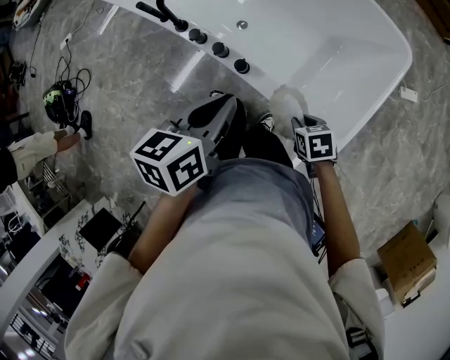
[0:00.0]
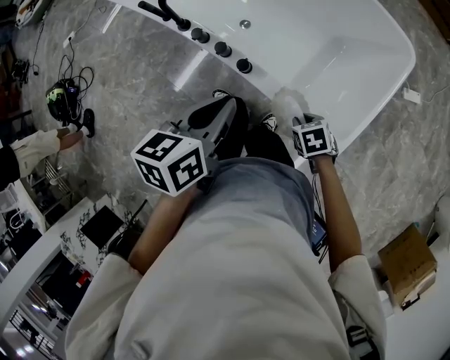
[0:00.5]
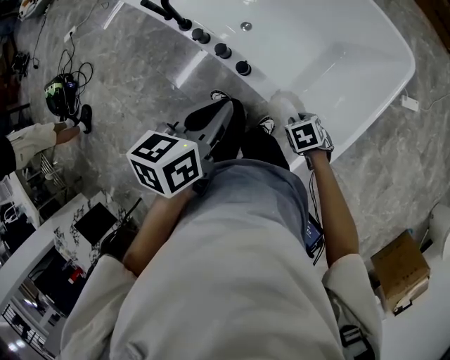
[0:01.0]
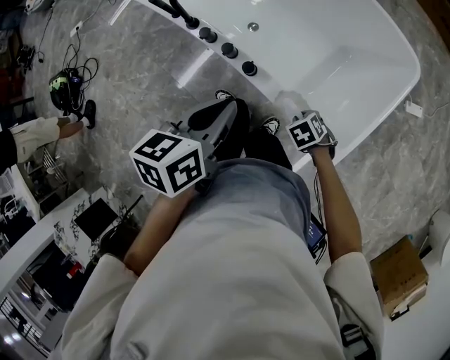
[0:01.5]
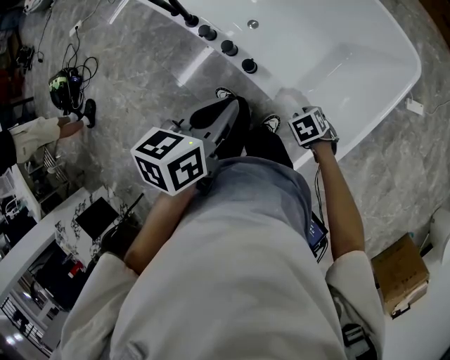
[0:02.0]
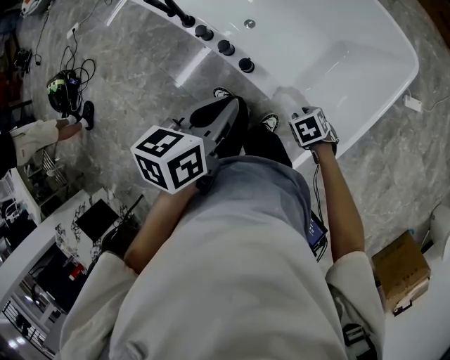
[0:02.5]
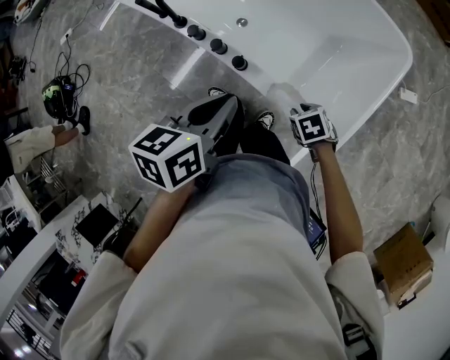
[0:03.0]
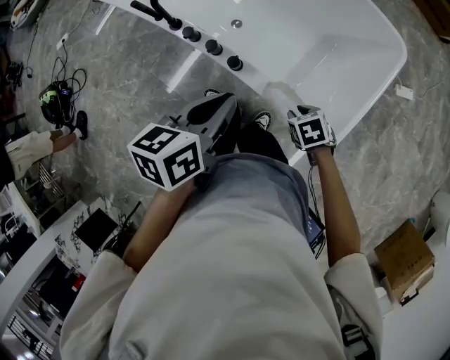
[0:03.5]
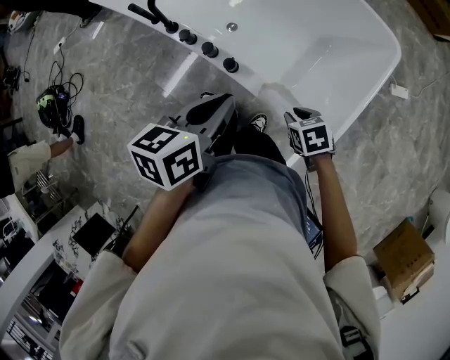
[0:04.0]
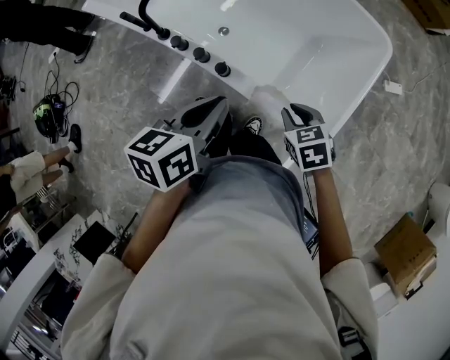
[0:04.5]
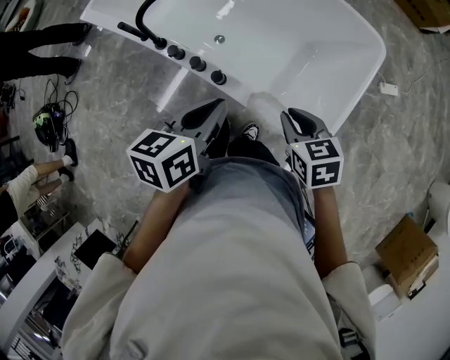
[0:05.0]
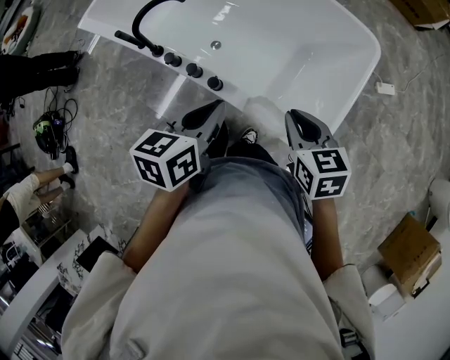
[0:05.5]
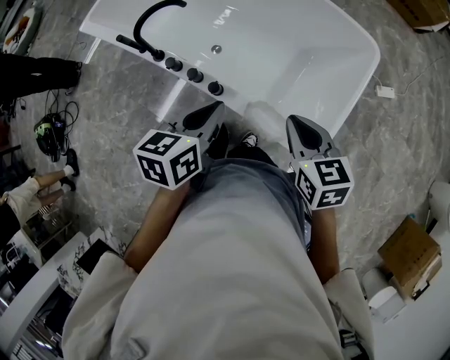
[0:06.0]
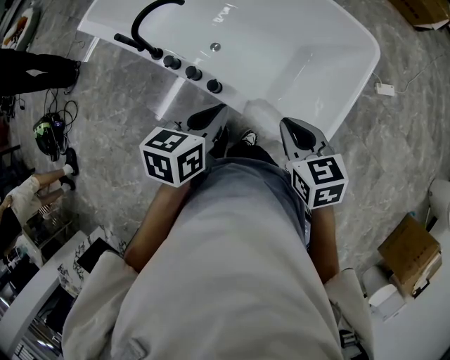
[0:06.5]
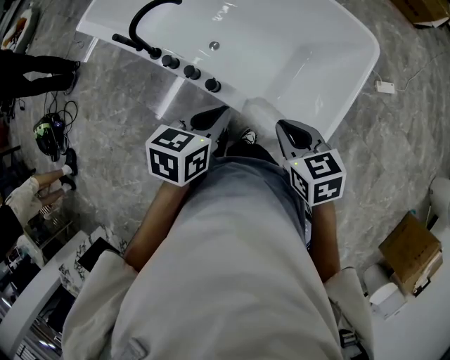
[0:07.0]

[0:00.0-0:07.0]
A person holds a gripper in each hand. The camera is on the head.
0:00.0 to 0:02.0: The right gripper heads downward, covering approximately 5 cm, and changes its angle by some 20 degrees.
0:02.0 to 0:03.5: There are only small adjustments of the grippers.
0:03.5 to 0:05.0: The right gripper is displaced upward by some 15 cm, and changes its angle by roughly 30 degrees.
0:05.0 to 0:07.0: The grippers make only small movements.

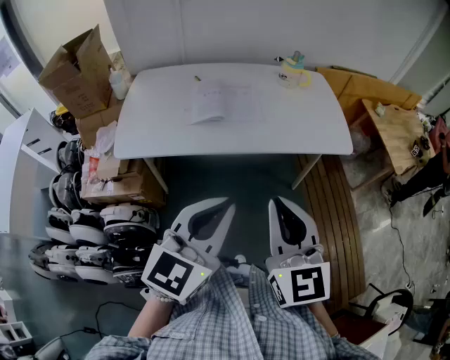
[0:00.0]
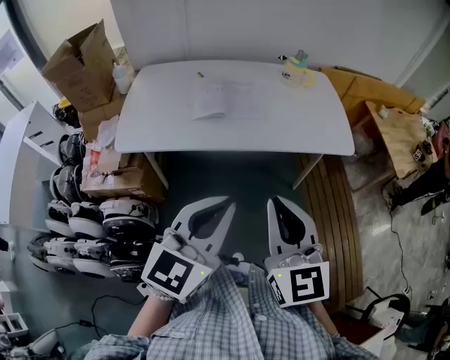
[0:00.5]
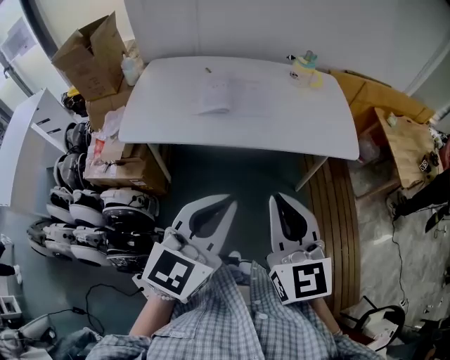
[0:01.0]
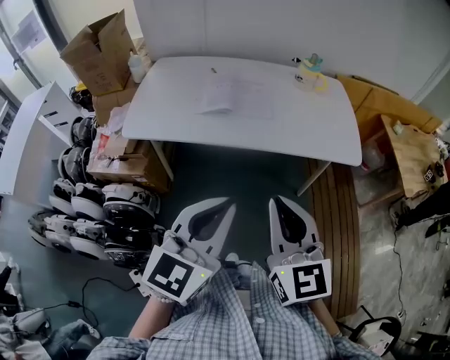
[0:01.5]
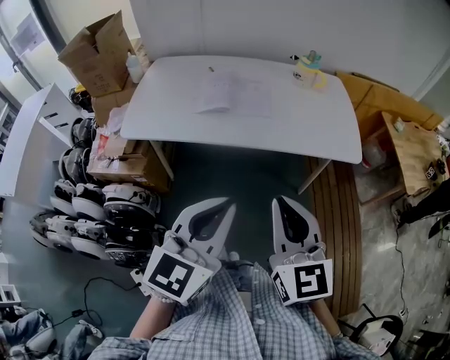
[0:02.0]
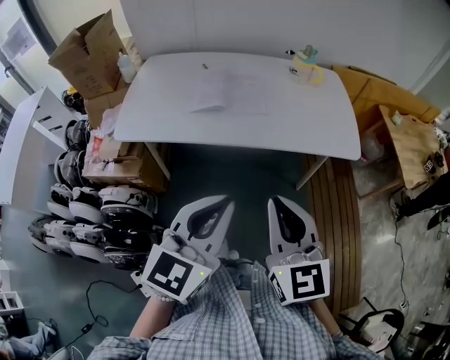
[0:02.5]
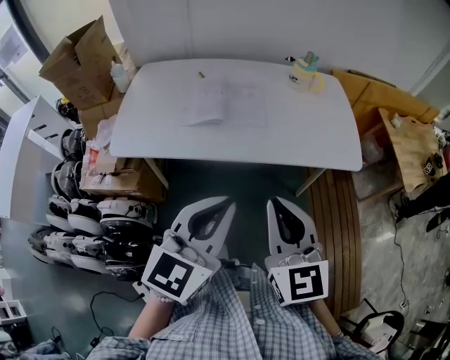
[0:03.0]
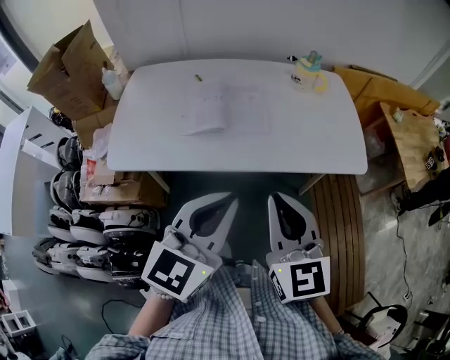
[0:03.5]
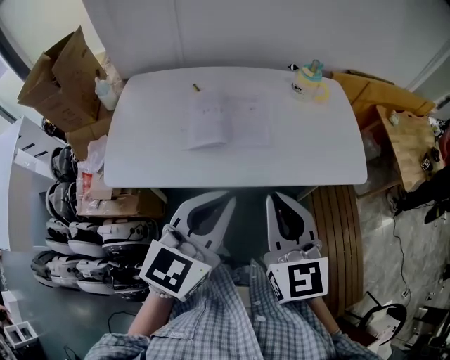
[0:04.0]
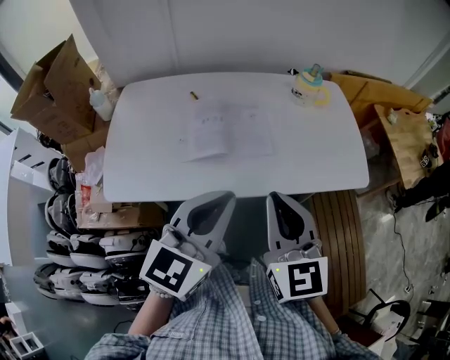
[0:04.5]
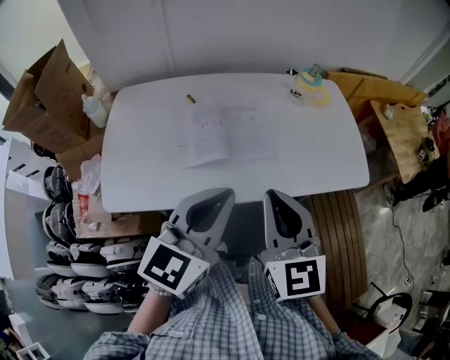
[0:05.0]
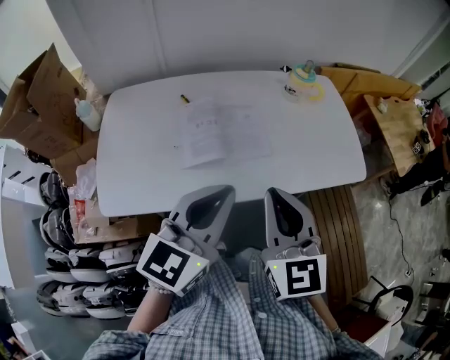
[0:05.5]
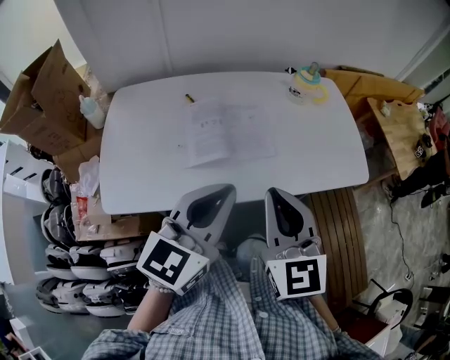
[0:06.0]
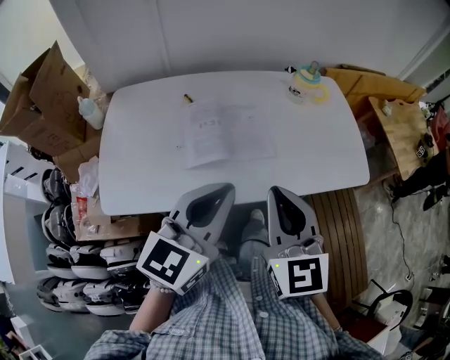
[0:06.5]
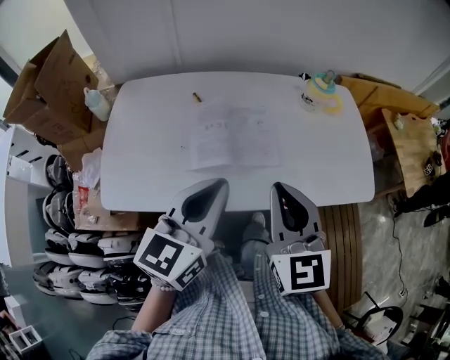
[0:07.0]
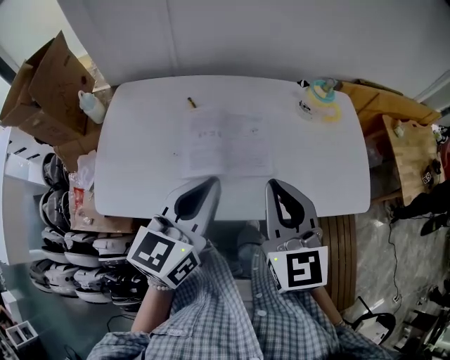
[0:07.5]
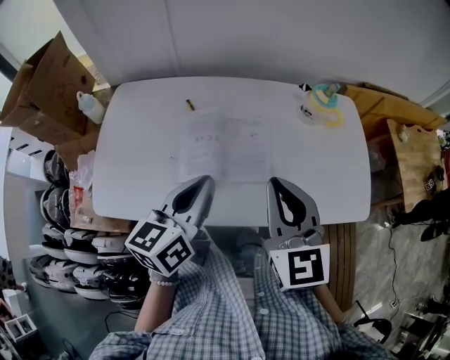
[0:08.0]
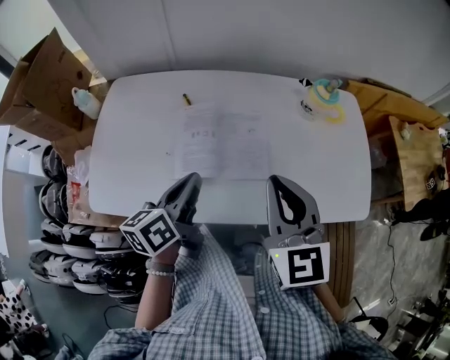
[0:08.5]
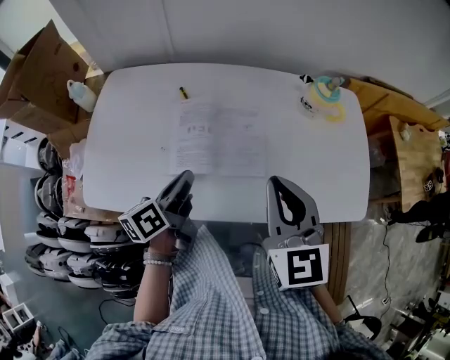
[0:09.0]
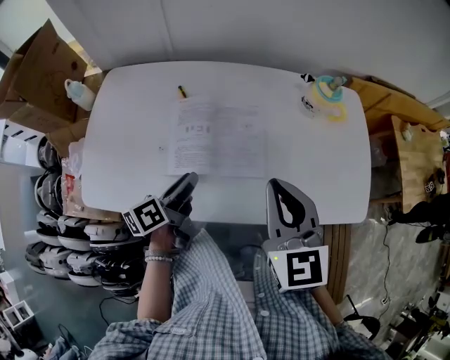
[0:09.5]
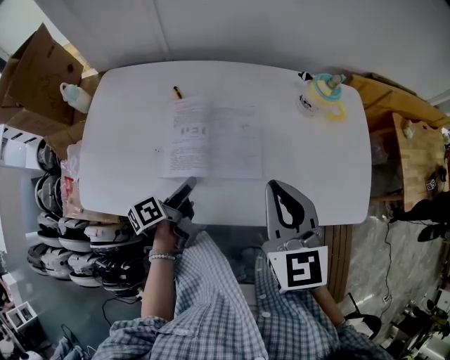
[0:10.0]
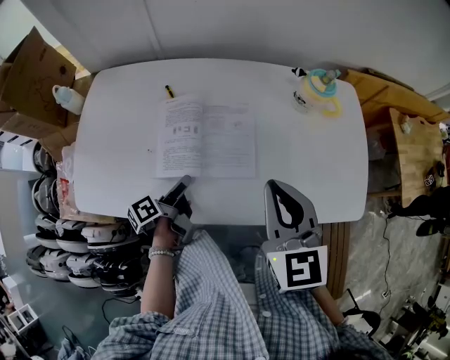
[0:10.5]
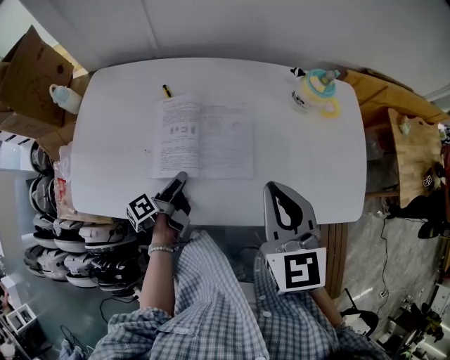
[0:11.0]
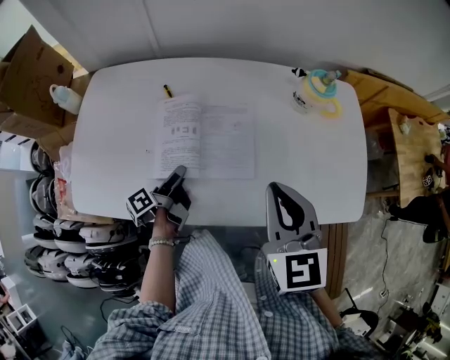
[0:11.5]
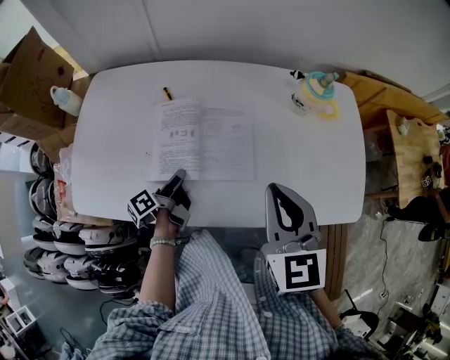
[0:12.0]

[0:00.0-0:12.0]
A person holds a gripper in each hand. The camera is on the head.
0:00.0 to 0:02.0: The grippers both shift to the right by some 5 cm.
0:02.0 to 0:04.0: The right gripper goes approximately 20 cm forward and to the left. Meanwhile the left gripper is displaced forward by some 20 cm.
0:04.0 to 0:06.0: The left gripper shifts approximately 10 cm forward and to the left, while the right gripper is displaced to the left and forward by some 5 cm.
0:06.0 to 0:08.0: The left gripper shifts about 15 cm forward and downward, and rotates about 30 degrees. Meanwhile the right gripper is displaced forward by roughly 15 cm.
0:08.0 to 0:10.0: The left gripper travels downward by about 20 cm, rotates around the line of its fingers by approximately 50 degrees, counterclockwise from behind, and opens. The right gripper shifts by about 5 cm.
0:10.0 to 0:12.0: The left gripper goes roughly 5 cm downward.

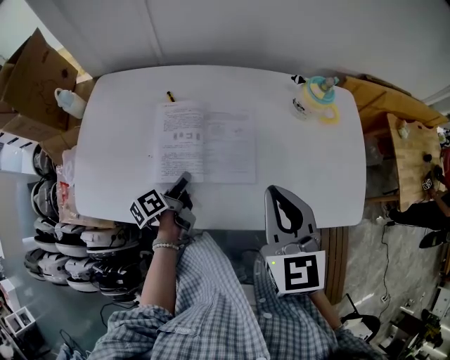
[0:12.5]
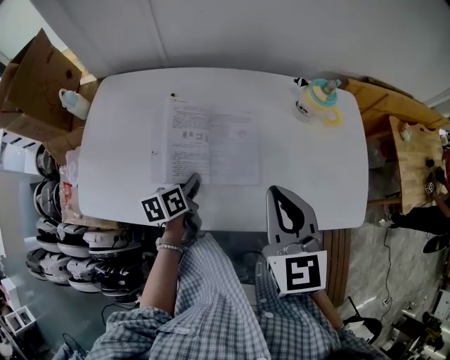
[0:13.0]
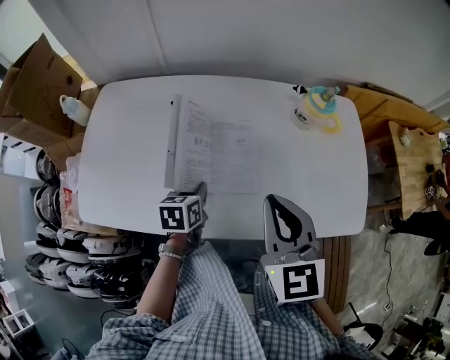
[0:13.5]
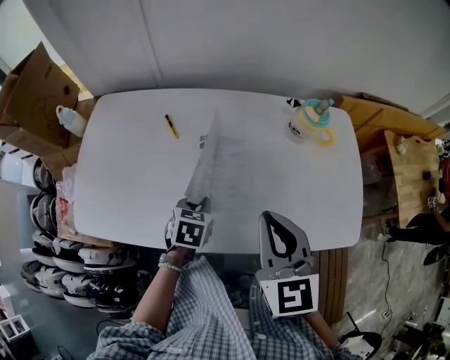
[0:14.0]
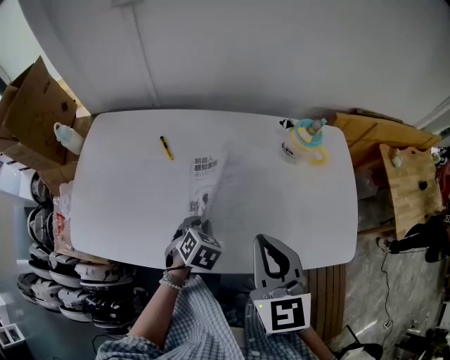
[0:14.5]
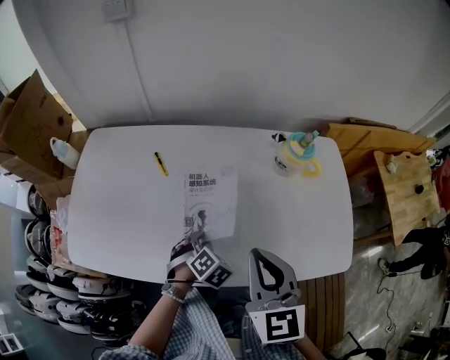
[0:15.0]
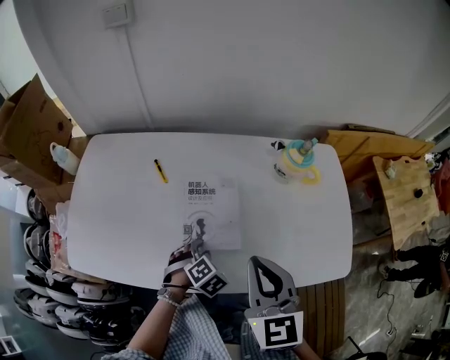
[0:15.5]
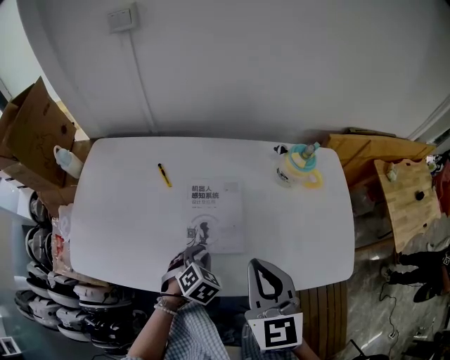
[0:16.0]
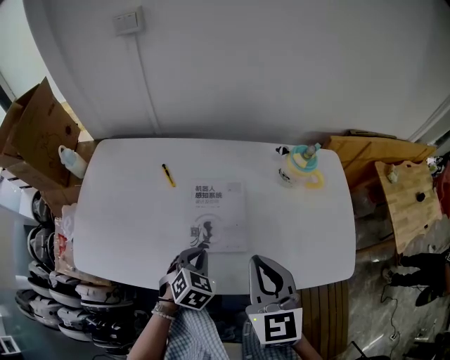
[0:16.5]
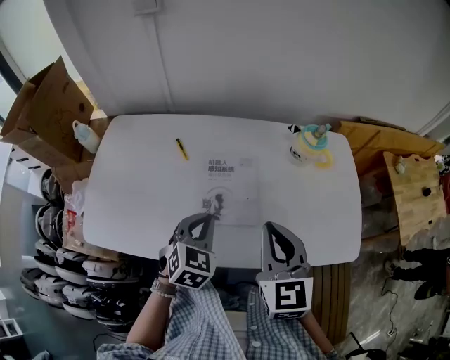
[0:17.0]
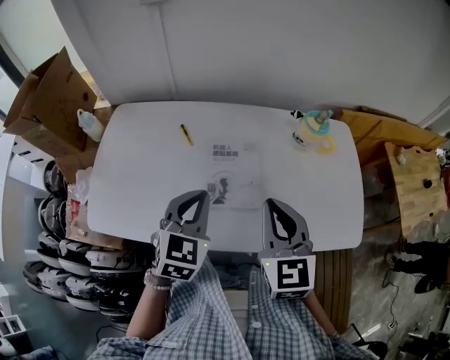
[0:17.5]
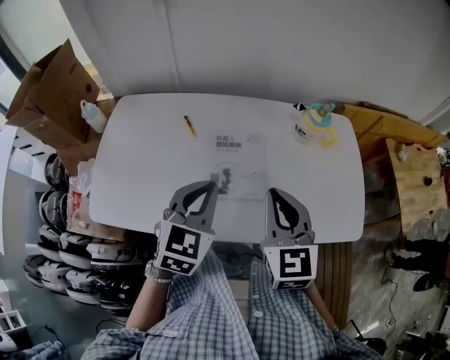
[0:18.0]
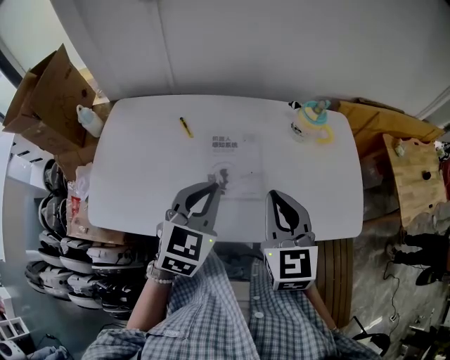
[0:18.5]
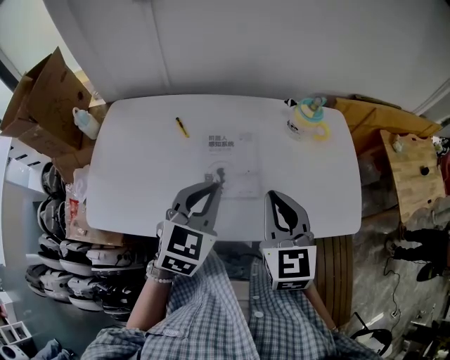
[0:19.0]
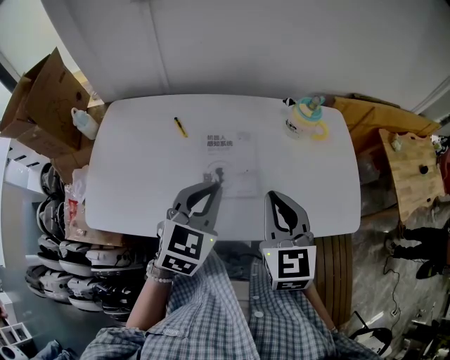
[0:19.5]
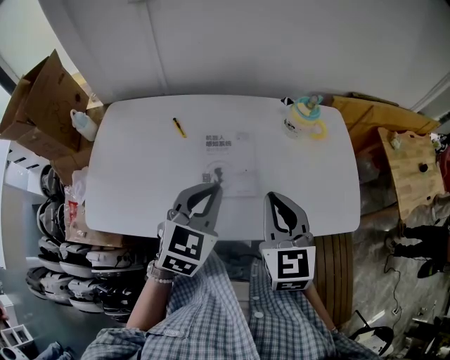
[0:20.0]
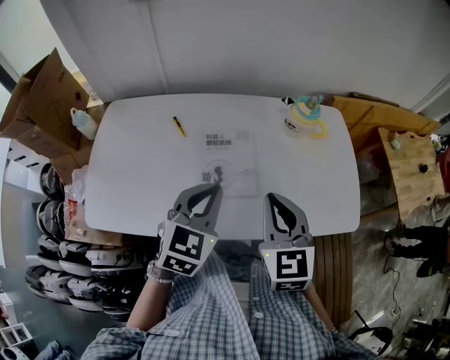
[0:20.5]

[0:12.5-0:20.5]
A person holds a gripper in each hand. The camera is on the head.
0:12.5 to 0:14.5: The left gripper is displaced to the right by about 10 cm, and rotates around the line of its fingers by about 80 degrees, clockwise from behind.
0:16.5 to 0:18.5: The left gripper is displaced upward by roughly 20 cm, and changes its angle by approximately 30 degrees.
0:18.5 to 0:20.5: The grippers move only a little.
